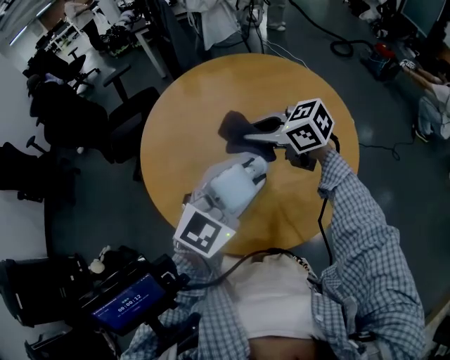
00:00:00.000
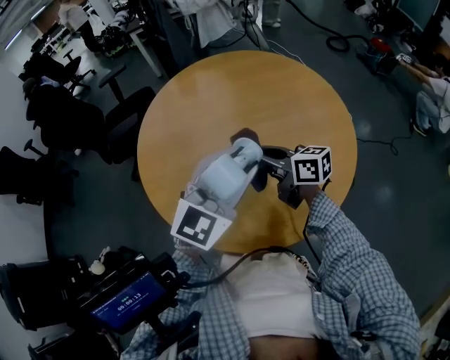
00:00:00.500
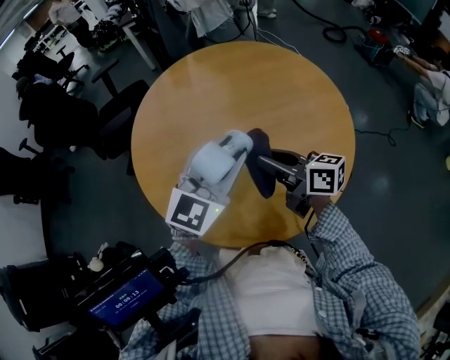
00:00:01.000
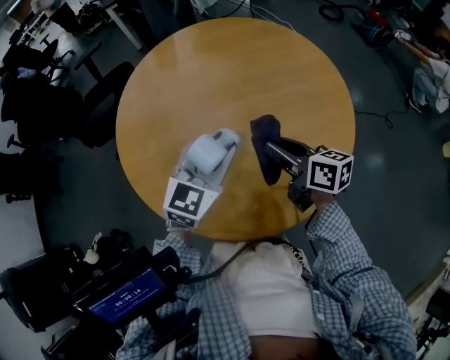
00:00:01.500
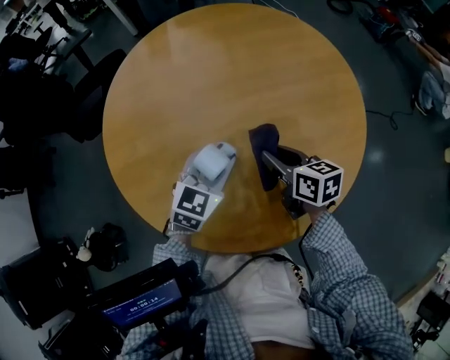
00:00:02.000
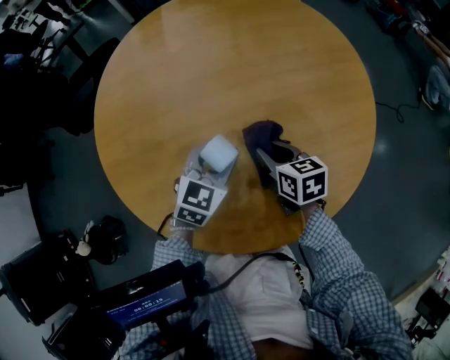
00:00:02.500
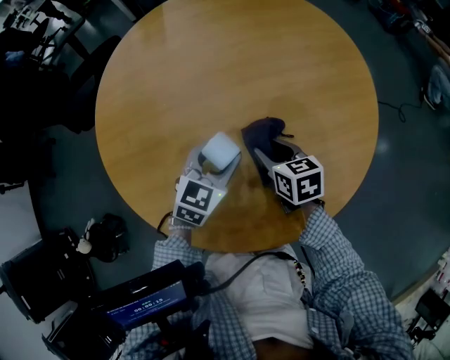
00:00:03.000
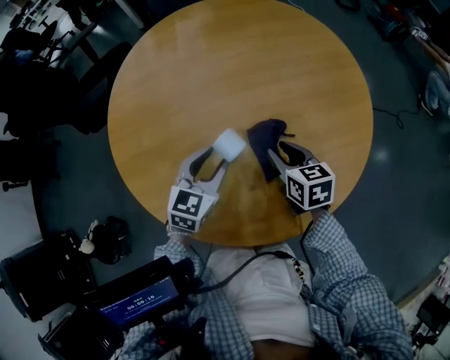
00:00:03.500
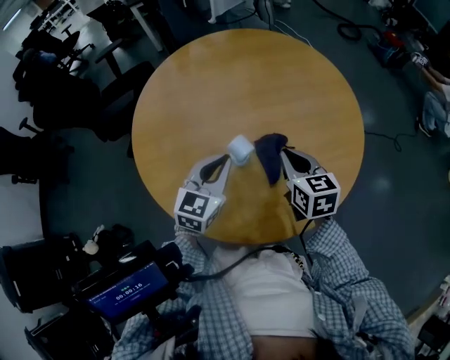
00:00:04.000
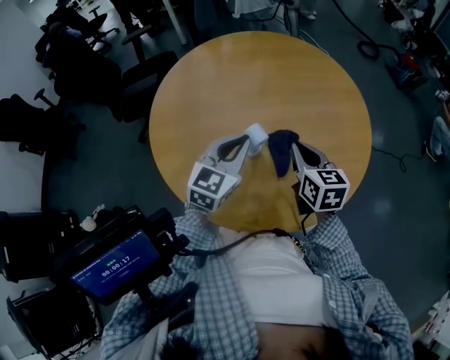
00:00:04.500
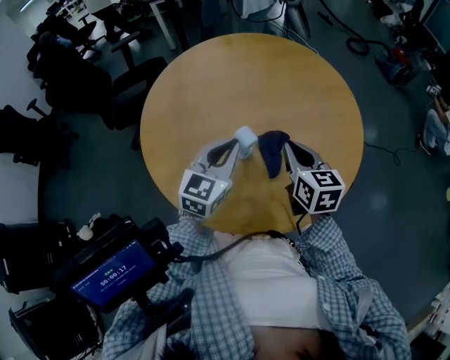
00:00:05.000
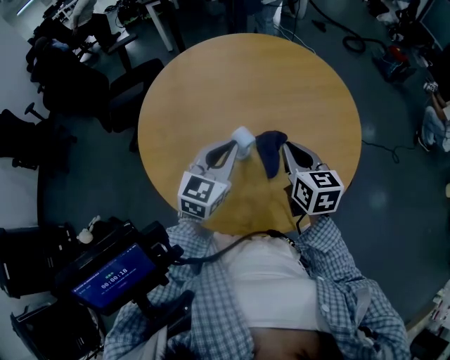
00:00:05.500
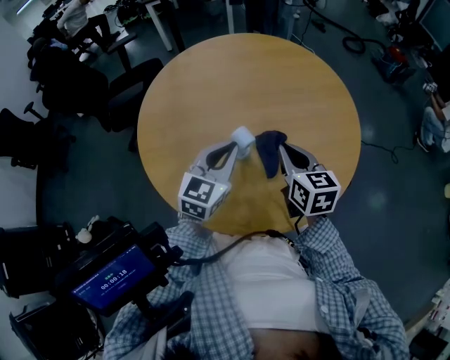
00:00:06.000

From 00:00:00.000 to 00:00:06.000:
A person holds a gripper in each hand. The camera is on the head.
From 00:00:00.000 to 00:00:02.000: The left gripper travels downward and forward by some 25 cm, and changes its angle by approximately 30 degrees; the right gripper travels downward and to the right by roughly 20 cm, and turns by approximately 50 degrees.
From 00:00:02.000 to 00:00:04.000: The grippers both shift upward by about 5 cm. The right gripper changes its angle by about 20 degrees, and closes. Meanwhile the left gripper closes its fingers.
From 00:00:04.000 to 00:00:06.000: There are only small adjustments of the grippers.

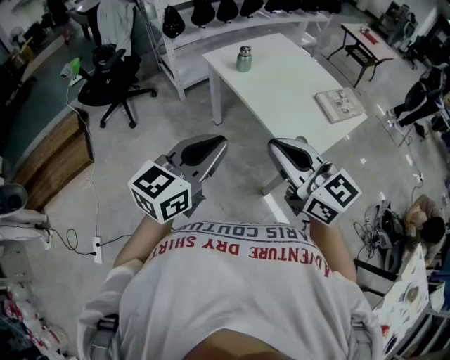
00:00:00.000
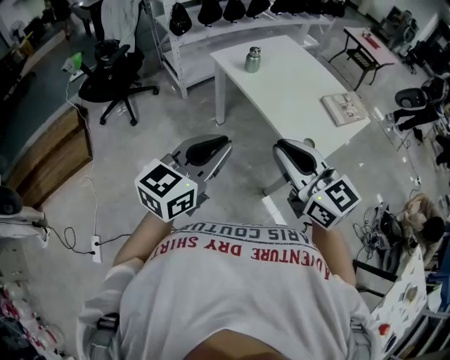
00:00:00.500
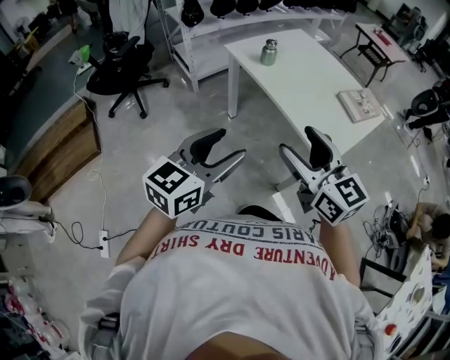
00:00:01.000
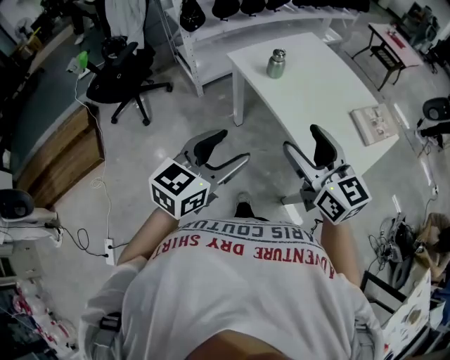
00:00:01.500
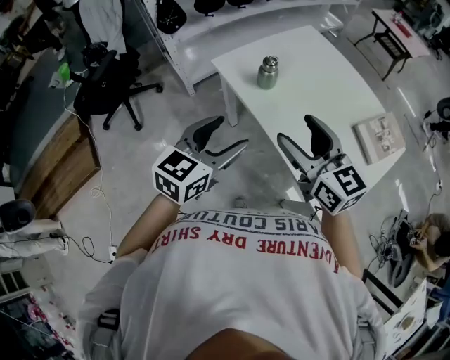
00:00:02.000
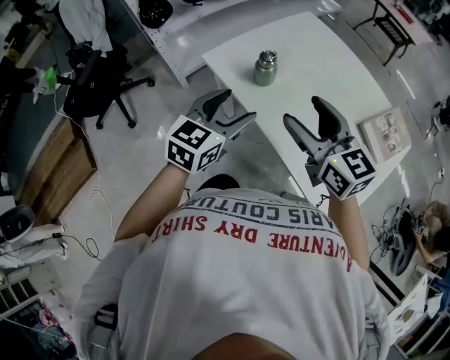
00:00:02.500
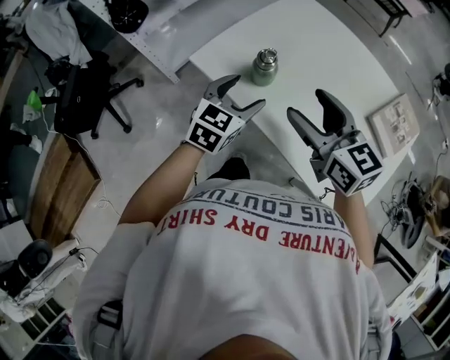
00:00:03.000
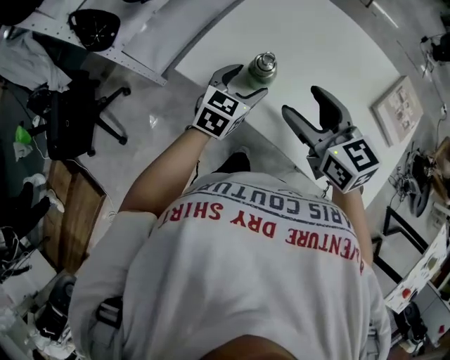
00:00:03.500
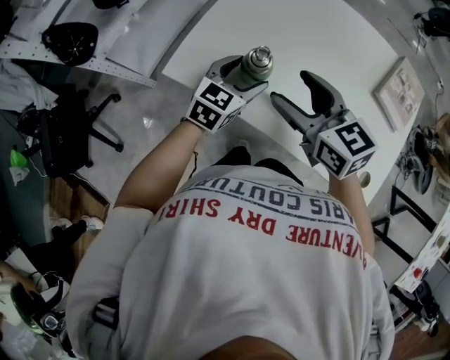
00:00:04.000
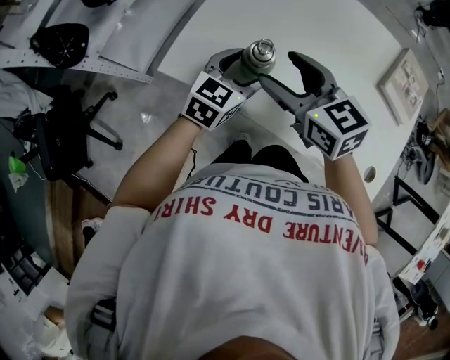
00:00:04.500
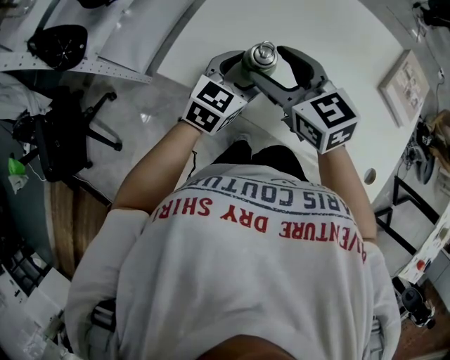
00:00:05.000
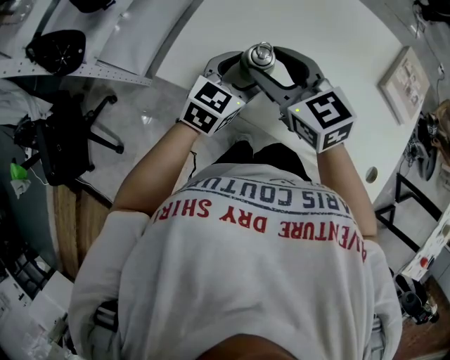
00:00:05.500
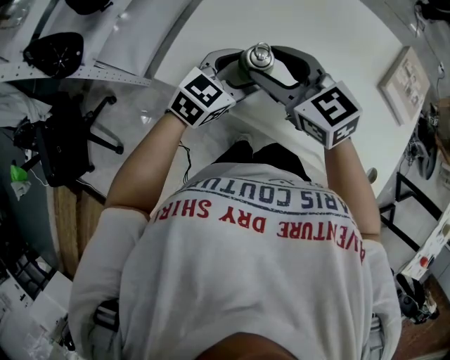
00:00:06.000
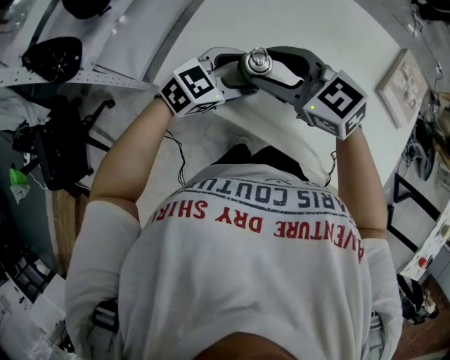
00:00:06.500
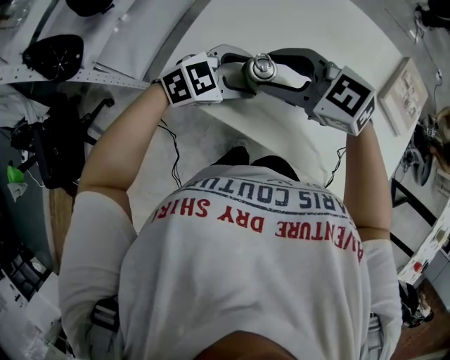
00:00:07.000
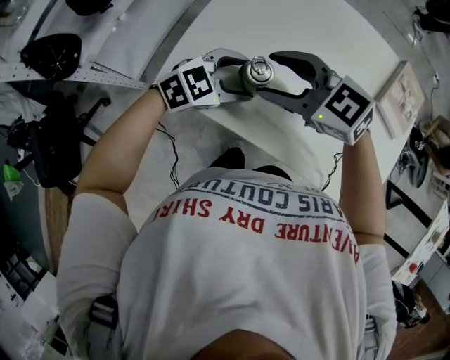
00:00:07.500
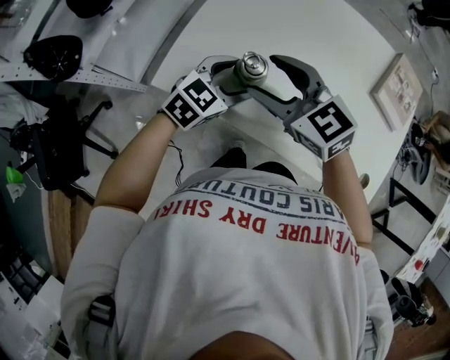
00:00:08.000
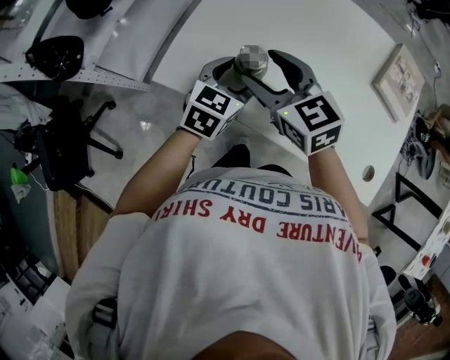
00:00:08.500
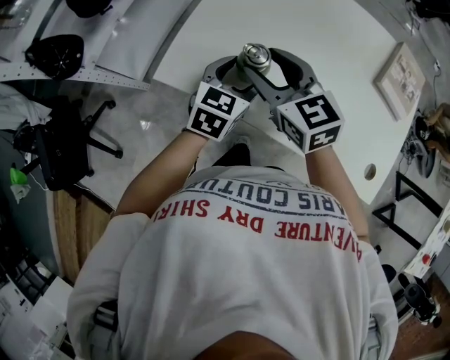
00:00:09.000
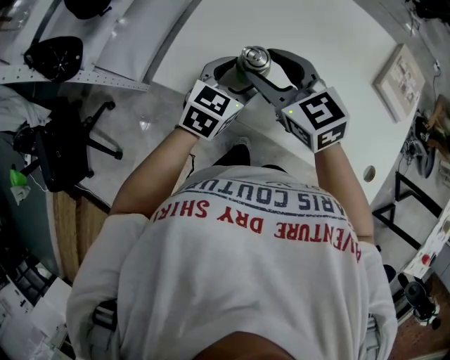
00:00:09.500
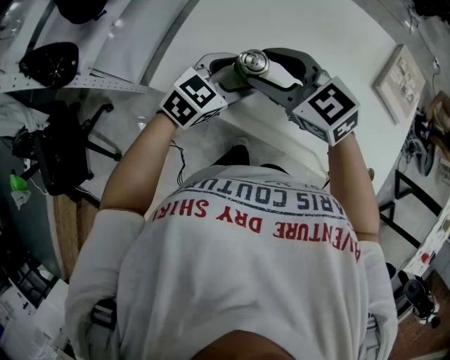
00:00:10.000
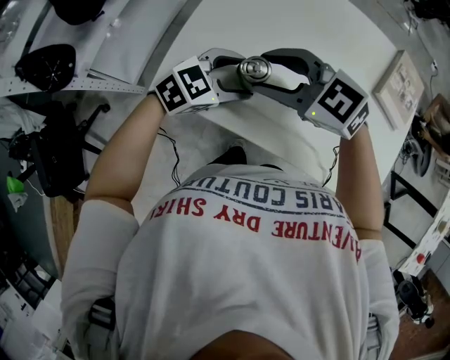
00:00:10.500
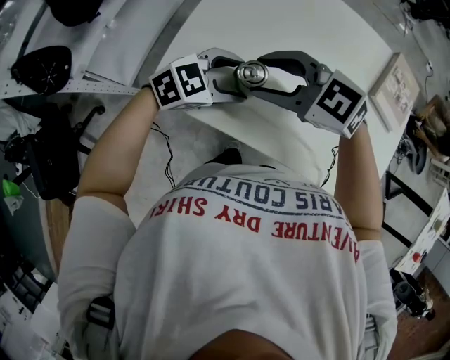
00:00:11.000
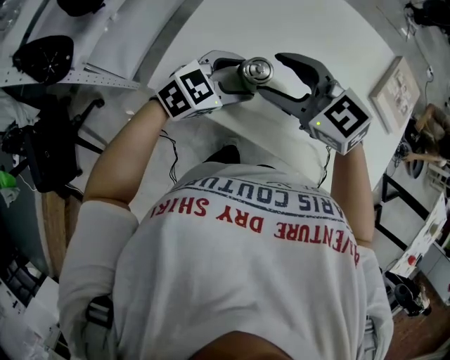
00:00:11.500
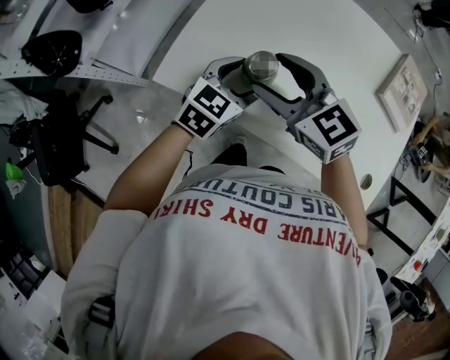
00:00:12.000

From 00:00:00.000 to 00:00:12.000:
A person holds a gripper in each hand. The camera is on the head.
From 00:00:00.000 to 00:00:02.000: The two grippers go about 30 cm forward. The left gripper opens its fingers. The right gripper opens up.
From 00:00:02.000 to 00:00:04.000: The grippers both shift forward and downward by about 30 cm. The right gripper turns by approximately 20 degrees, while the left gripper swivels approximately 30 degrees.
From 00:00:04.000 to 00:00:06.000: The right gripper is displaced to the left by roughly 5 cm.

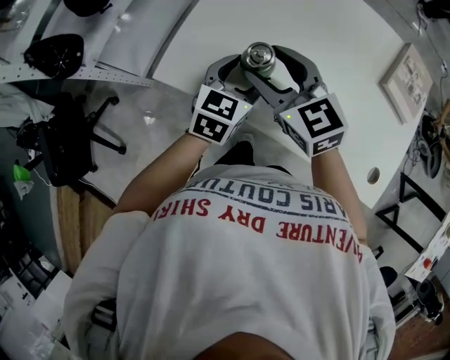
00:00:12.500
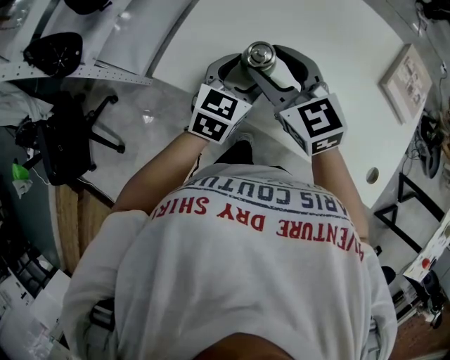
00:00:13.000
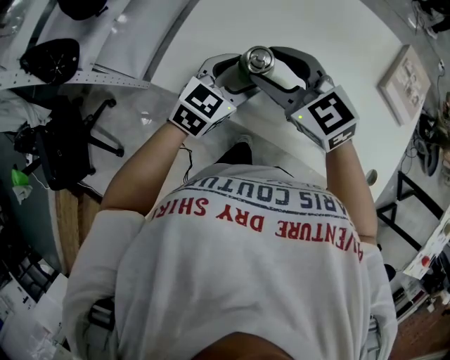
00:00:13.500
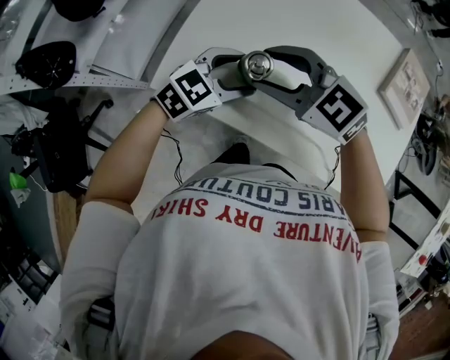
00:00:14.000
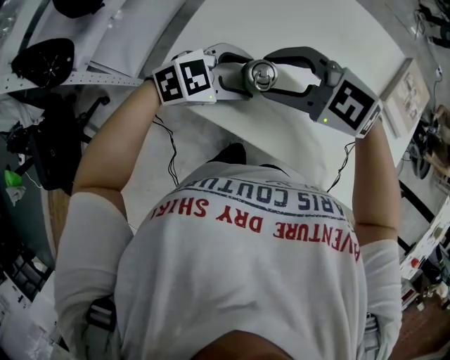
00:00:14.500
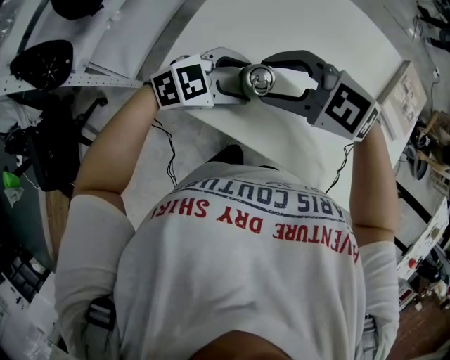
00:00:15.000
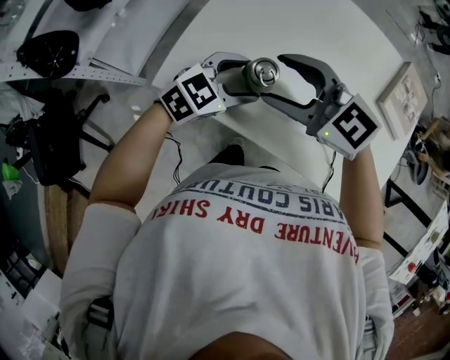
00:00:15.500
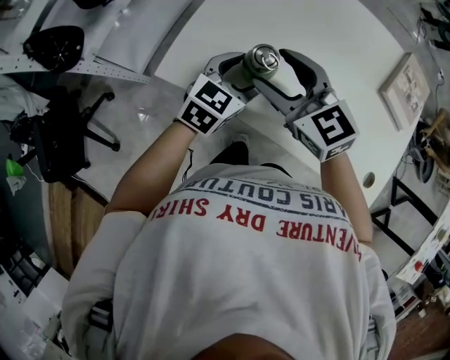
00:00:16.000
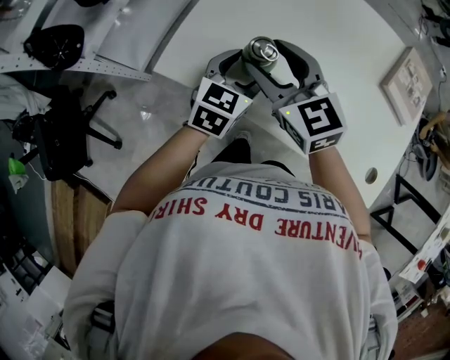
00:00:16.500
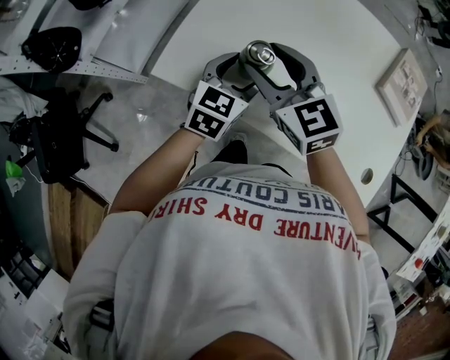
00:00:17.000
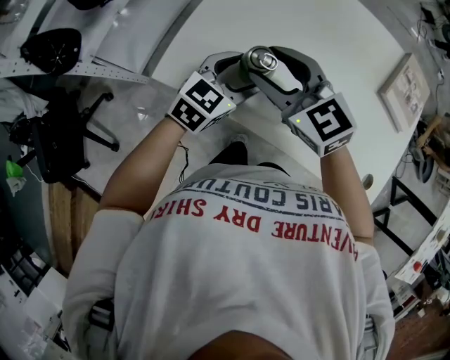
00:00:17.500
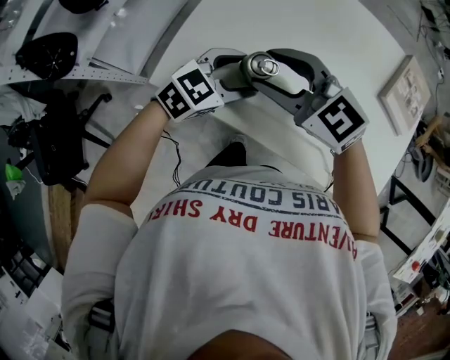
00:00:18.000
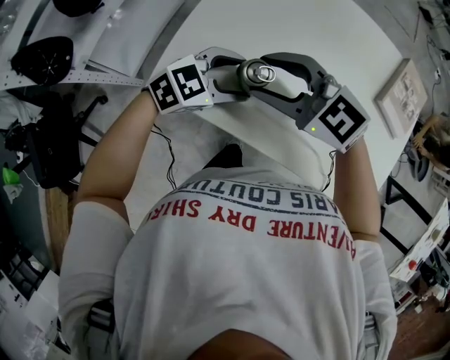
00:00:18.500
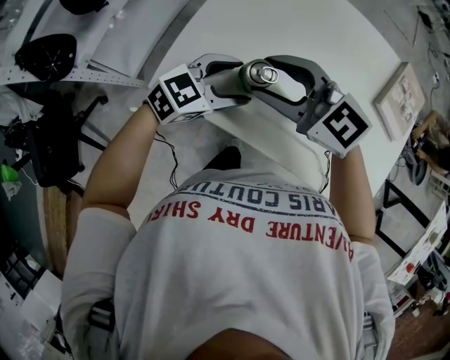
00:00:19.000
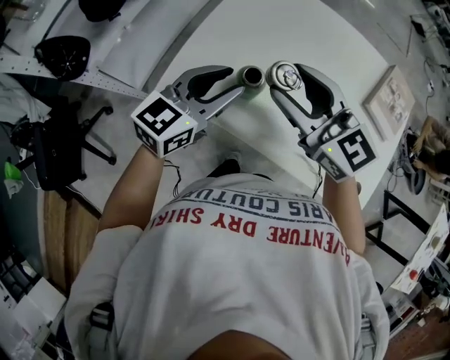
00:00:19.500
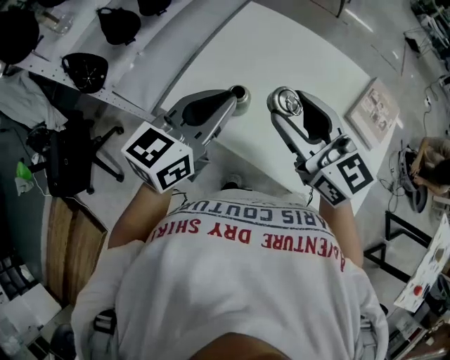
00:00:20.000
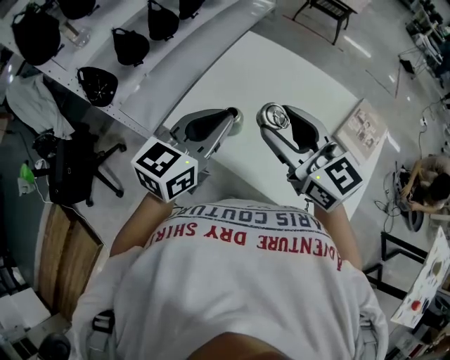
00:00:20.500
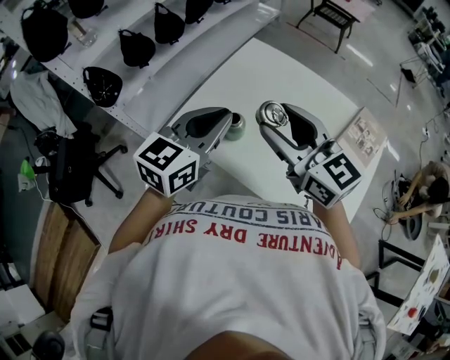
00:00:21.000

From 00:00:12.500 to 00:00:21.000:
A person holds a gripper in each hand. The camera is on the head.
From 00:00:12.500 to 00:00:14.500: The left gripper changes its angle by approximately 50 degrees, while the right gripper rotates approximately 40 degrees.
From 00:00:14.500 to 00:00:16.500: The right gripper swivels about 40 degrees. Meanwhile the left gripper rotates about 50 degrees.
From 00:00:16.500 to 00:00:19.000: The right gripper changes its angle by approximately 30 degrees; the left gripper rotates approximately 30 degrees.
From 00:00:19.000 to 00:00:21.000: The grippers both shift upward by roughly 20 cm. The right gripper turns by some 20 degrees. The left gripper swivels about 40 degrees, and closes its fingers.
